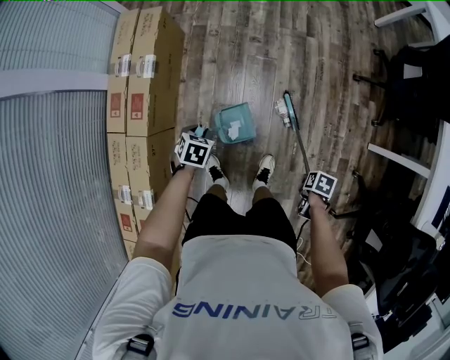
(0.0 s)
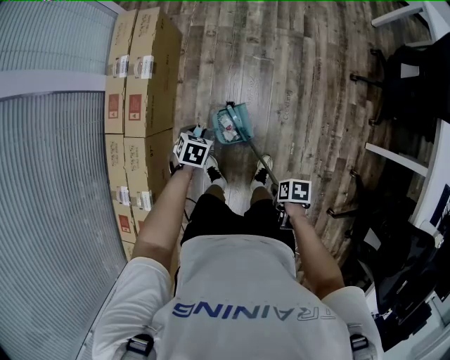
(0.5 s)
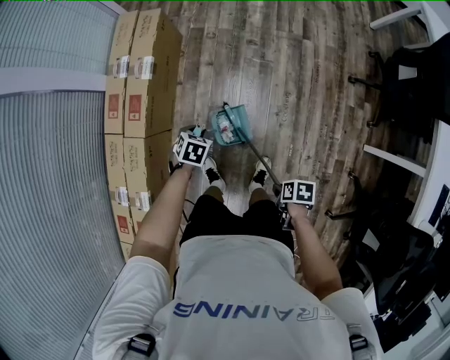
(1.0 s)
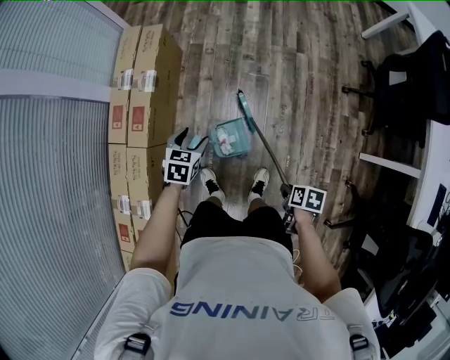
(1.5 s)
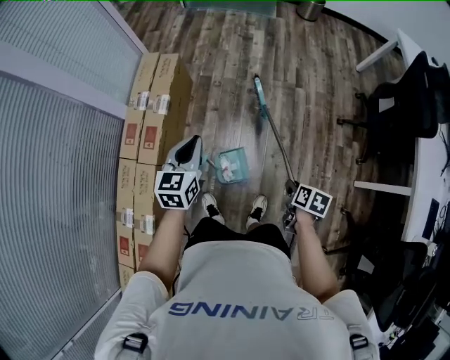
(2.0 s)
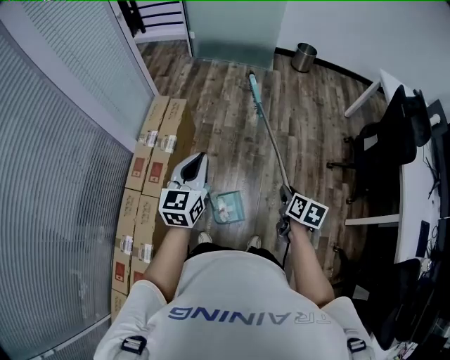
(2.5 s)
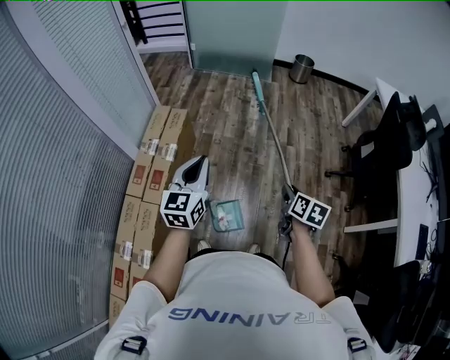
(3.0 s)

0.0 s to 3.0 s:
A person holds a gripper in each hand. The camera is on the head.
0.0 to 1.5 s: The left gripper goes approximately 10 cm upward, and opens up.
1.5 to 3.0 s: The left gripper travels upward by some 35 cm, angles its fingers upward, by roughly 40 degrees, and closes its fingers.

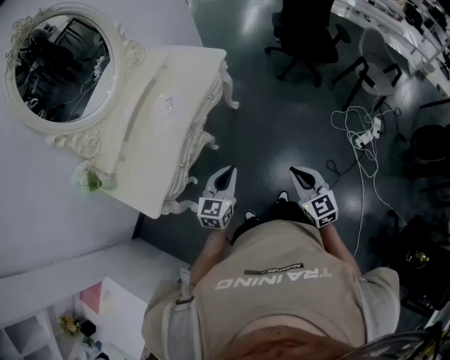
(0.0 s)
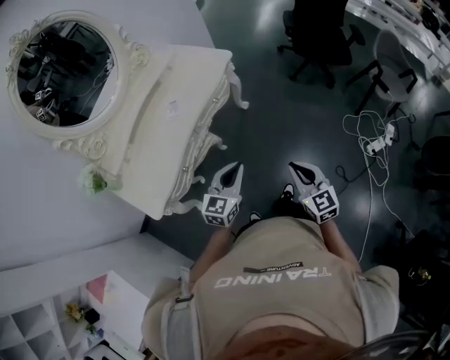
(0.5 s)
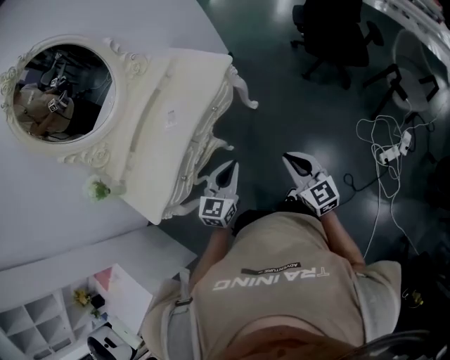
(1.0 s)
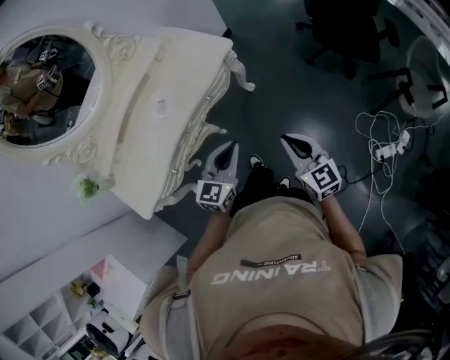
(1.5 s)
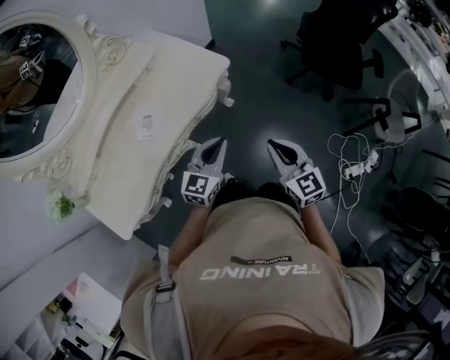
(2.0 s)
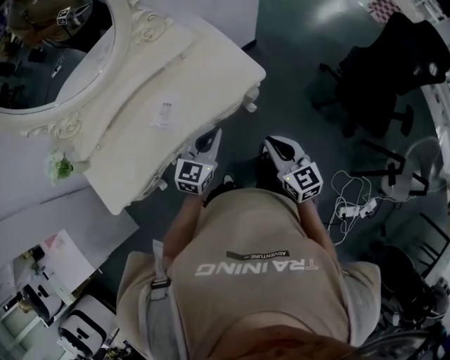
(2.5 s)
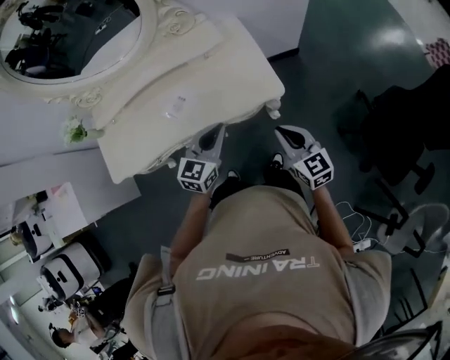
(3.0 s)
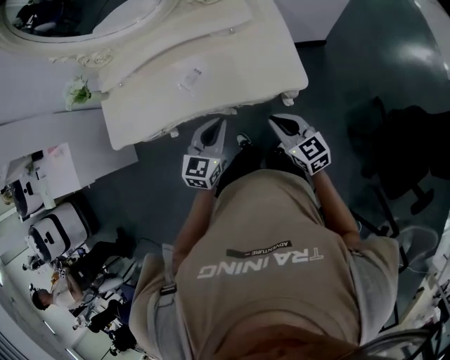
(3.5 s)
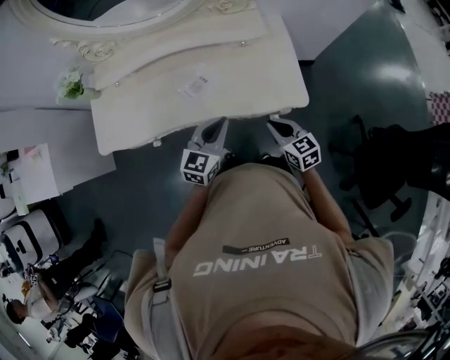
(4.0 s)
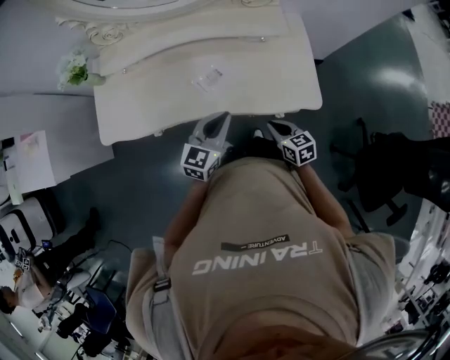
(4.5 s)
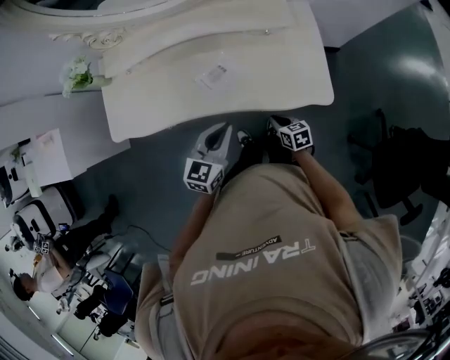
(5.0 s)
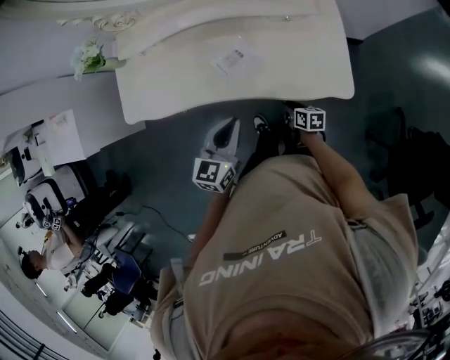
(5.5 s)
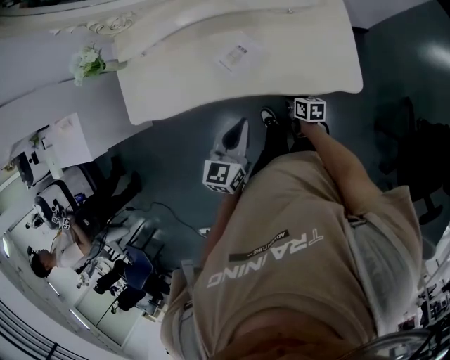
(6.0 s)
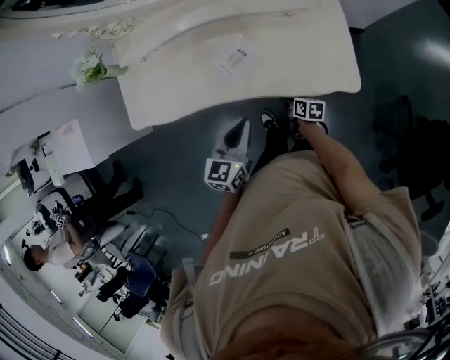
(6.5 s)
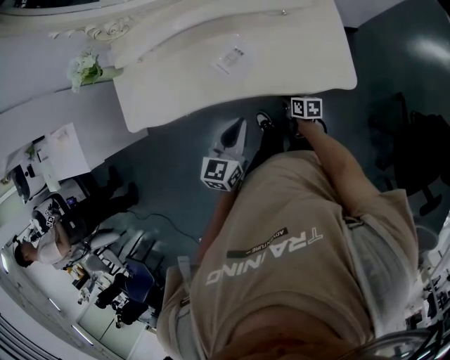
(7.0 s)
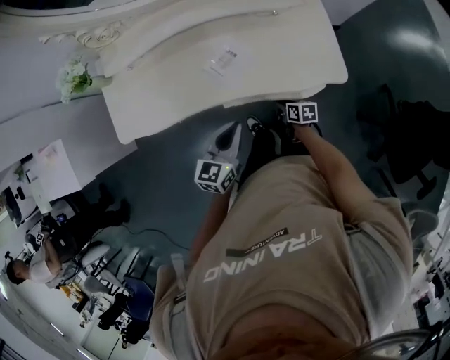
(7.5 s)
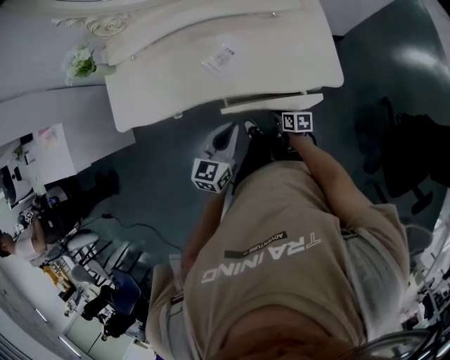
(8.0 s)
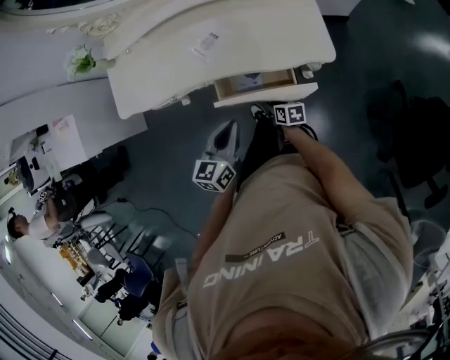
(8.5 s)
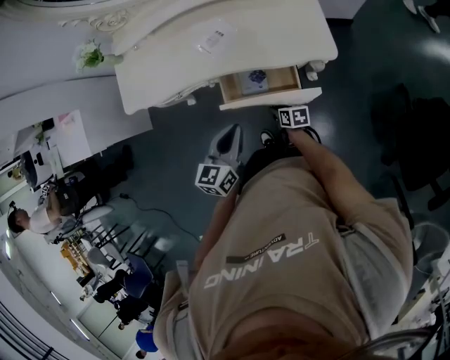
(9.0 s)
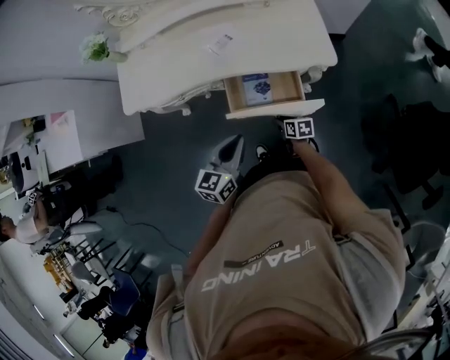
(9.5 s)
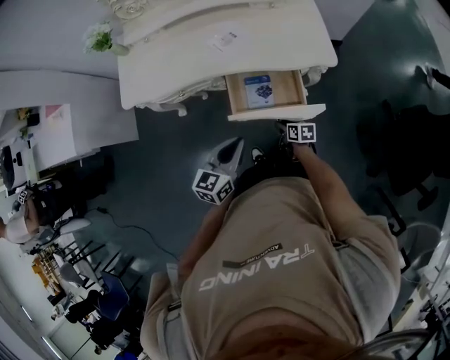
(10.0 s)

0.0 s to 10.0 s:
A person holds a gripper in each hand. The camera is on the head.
0.0 to 2.0 s: The pair of grippers is taken forward, about 40 cm.
2.0 to 4.0 s: The left gripper moves about 15 cm, and changes its angle by approximately 40 degrees; the right gripper shifts by approximately 30 cm, and changes its angle by roughly 50 degrees.
4.0 to 6.0 s: The left gripper travels to the left by some 5 cm. Meanwhile the right gripper goes approximately 25 cm downward, swivels approximately 40 degrees, and opens its fingers.
6.0 to 8.0 s: The left gripper ends up about 5 cm from where it was, while the right gripper moves backward, about 10 cm.
8.0 to 10.0 s: The two grippers go roughly 15 cm backward.

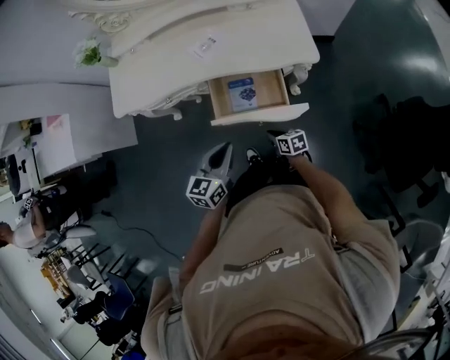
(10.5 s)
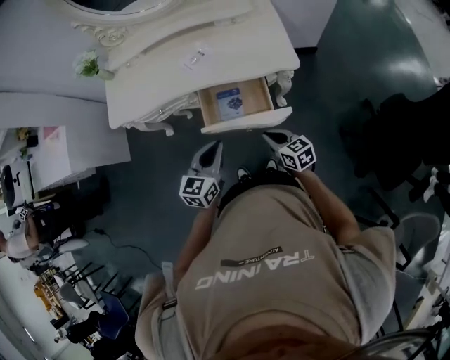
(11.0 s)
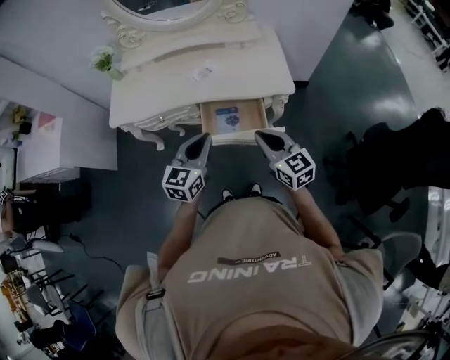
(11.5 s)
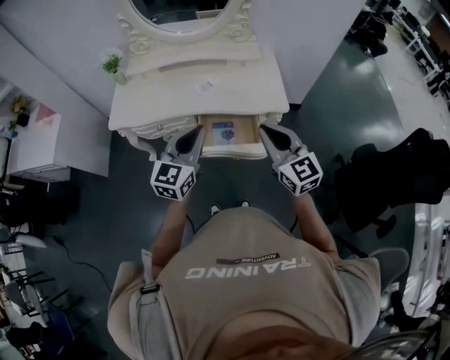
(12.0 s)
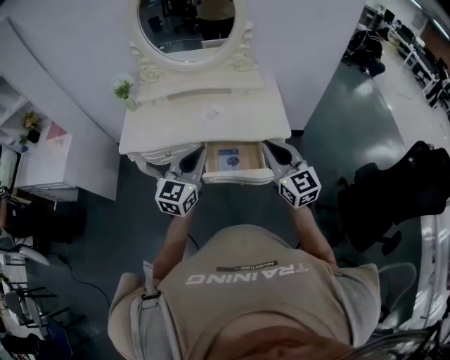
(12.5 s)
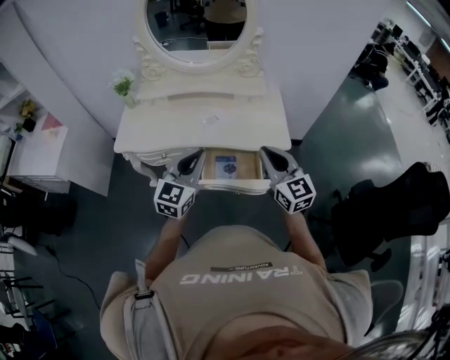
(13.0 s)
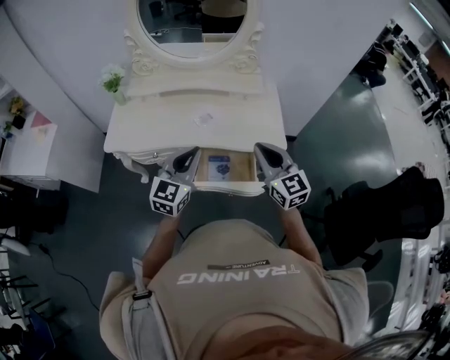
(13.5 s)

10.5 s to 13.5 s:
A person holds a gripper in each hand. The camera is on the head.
10.5 to 12.0 s: The right gripper shifts some 50 cm upward, and points its fingers approximately 30 degrees further upward. The left gripper travels upward by approximately 20 cm, and swivels approximately 30 degrees.
12.0 to 13.5 s: Both grippers travel together forward, some 10 cm.

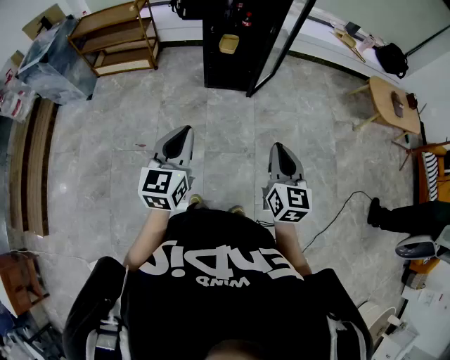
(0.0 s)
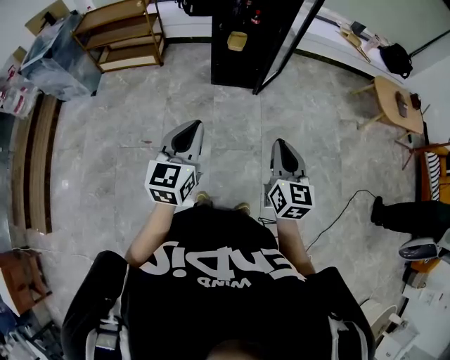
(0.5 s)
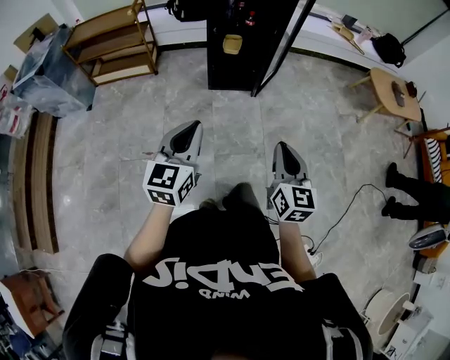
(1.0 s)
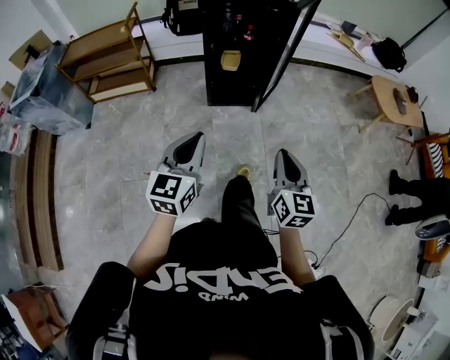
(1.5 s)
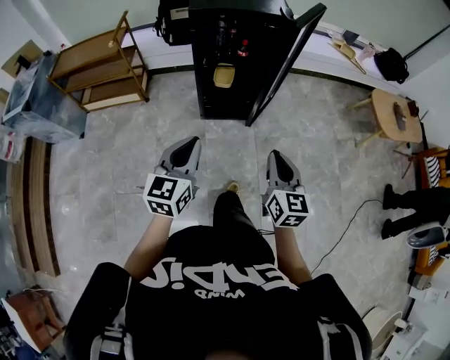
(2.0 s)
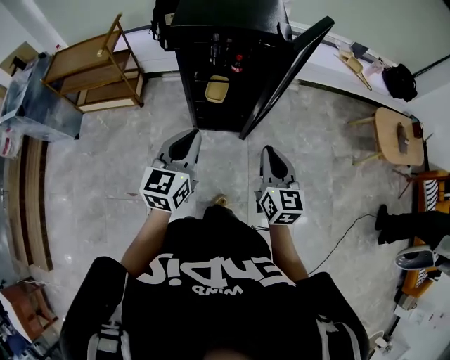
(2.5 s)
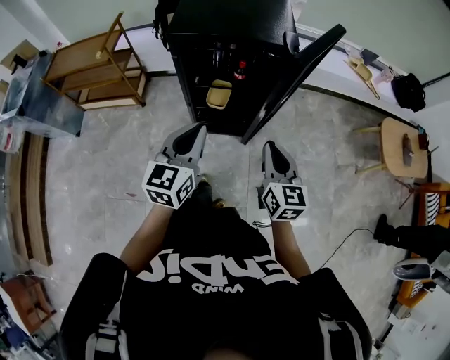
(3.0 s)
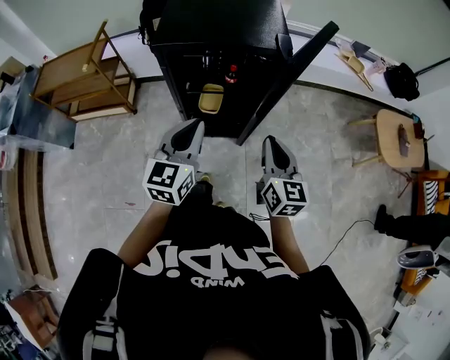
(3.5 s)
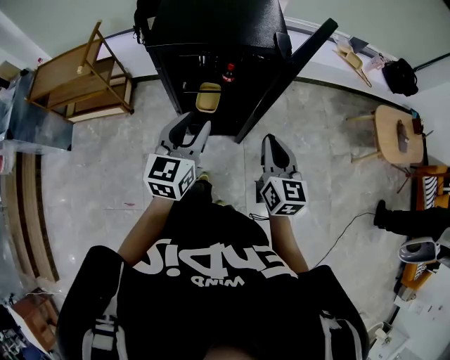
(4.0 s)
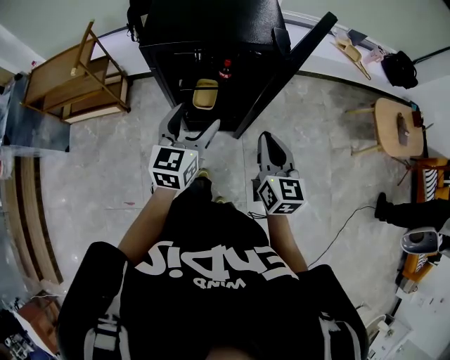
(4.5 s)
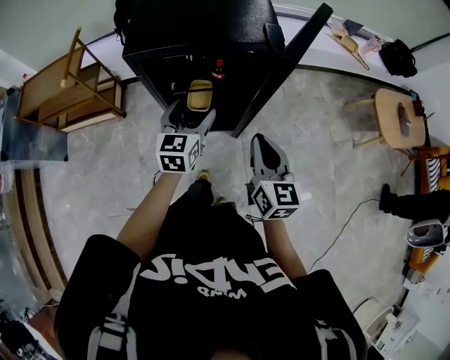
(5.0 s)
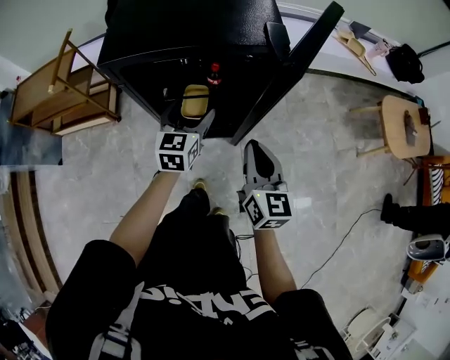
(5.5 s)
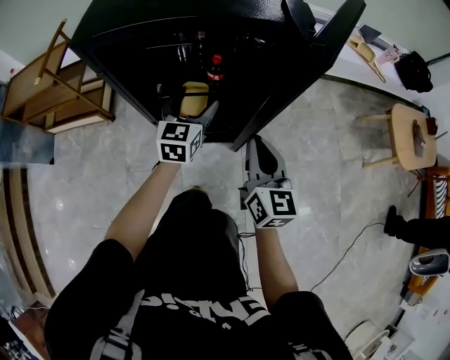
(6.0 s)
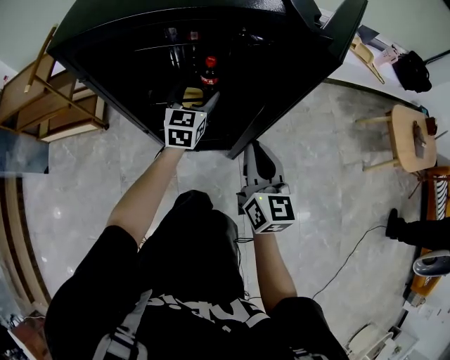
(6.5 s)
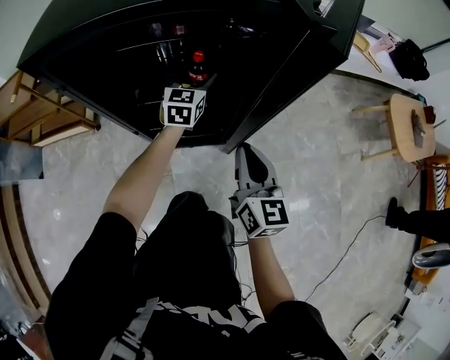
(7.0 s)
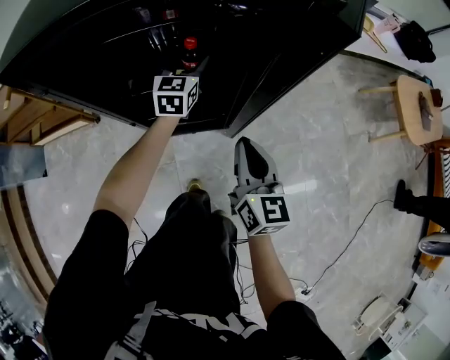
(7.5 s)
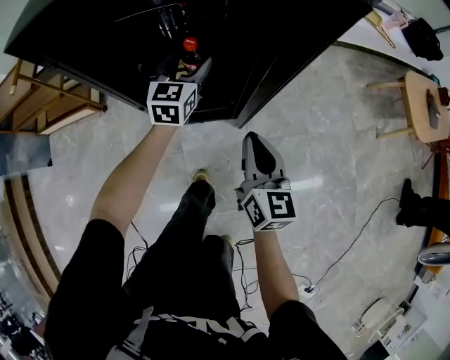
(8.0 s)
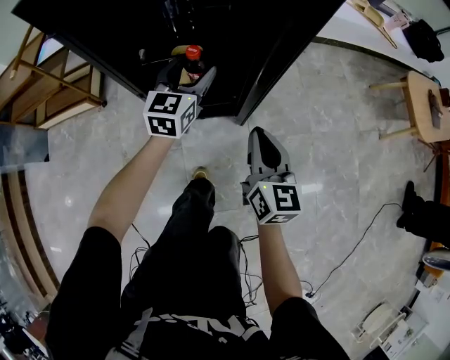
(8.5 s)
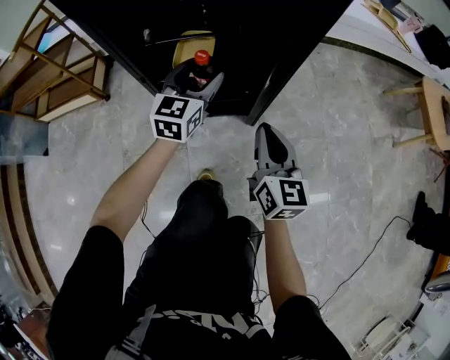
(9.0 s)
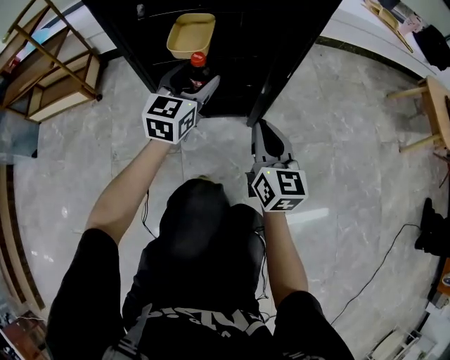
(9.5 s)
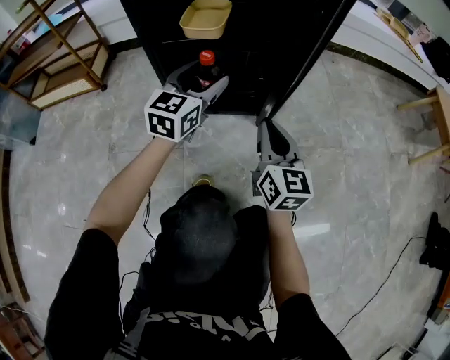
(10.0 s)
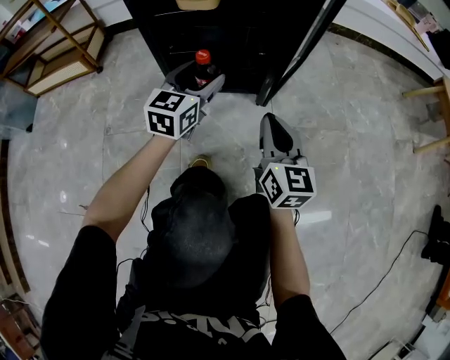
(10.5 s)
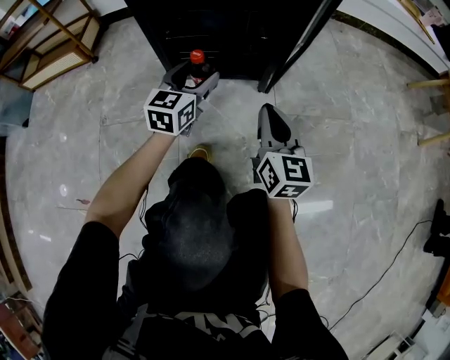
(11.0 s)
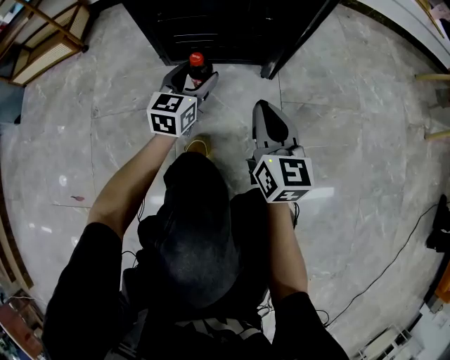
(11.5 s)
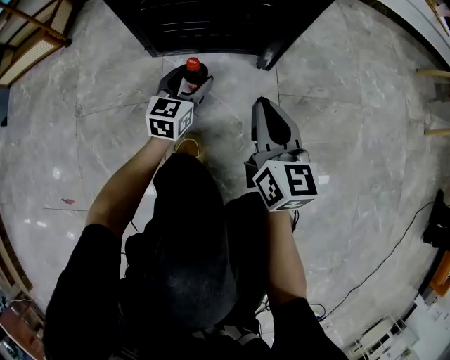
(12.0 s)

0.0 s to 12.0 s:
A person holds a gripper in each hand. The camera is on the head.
0.0 to 2.0 s: The grippers both shift forward by roughly 25 cm.
2.0 to 4.0 s: Both grippers move forward, approximately 30 cm. The left gripper opens up.
4.0 to 6.0 s: The right gripper moves downward and forward, some 20 cm, while the left gripper heads downward and forward, covering some 30 cm, and opens.
6.0 to 8.0 s: The left gripper shifts approximately 10 cm forward and downward; the right gripper shifts some 10 cm downward.
8.0 to 10.0 s: The left gripper moves downward and backward, some 30 cm; the right gripper travels downward by about 30 cm.
10.0 to 12.0 s: The right gripper moves downward, approximately 15 cm, while the left gripper is displaced downward by roughly 30 cm.
